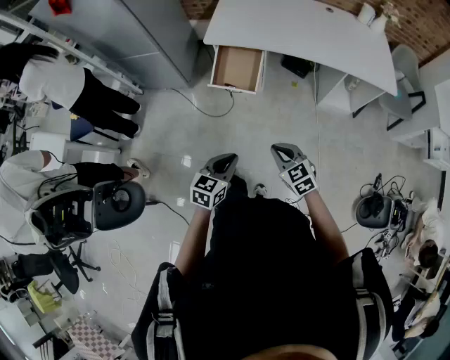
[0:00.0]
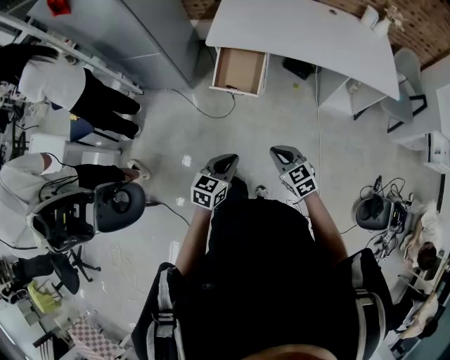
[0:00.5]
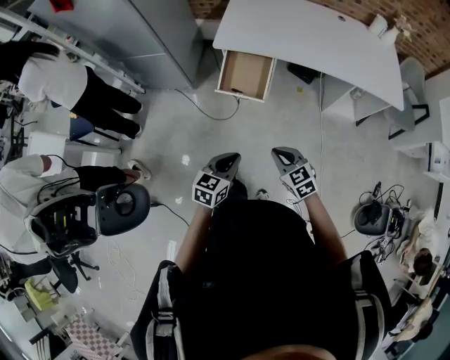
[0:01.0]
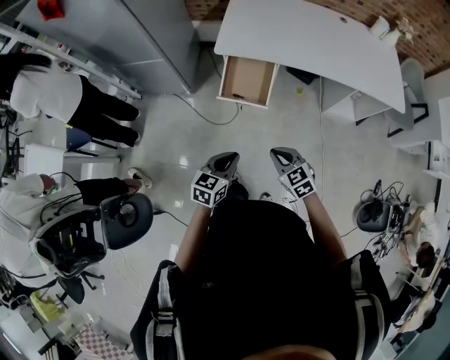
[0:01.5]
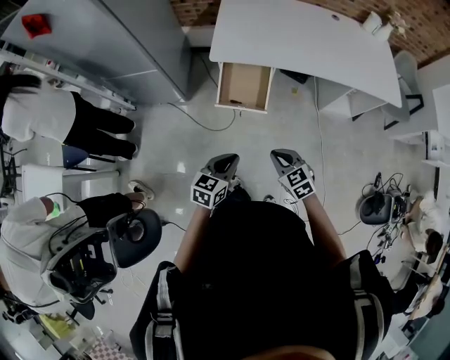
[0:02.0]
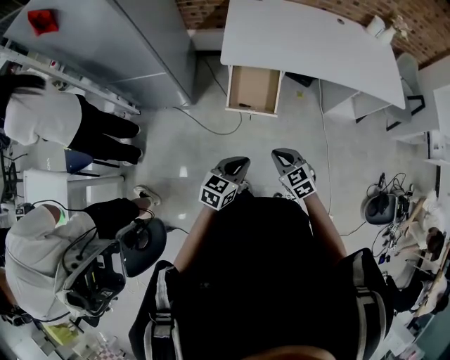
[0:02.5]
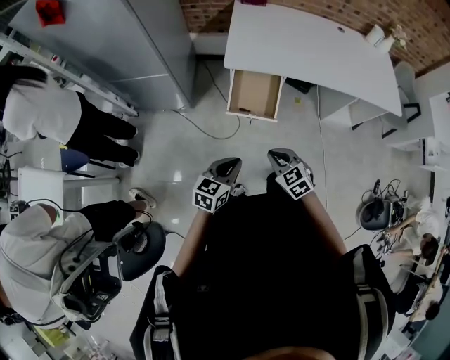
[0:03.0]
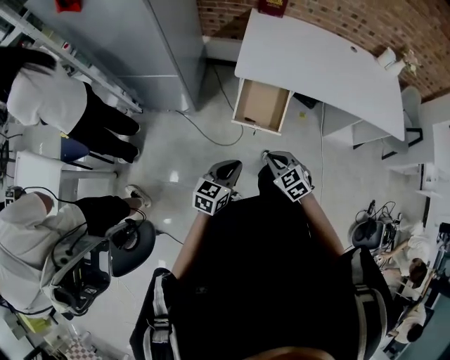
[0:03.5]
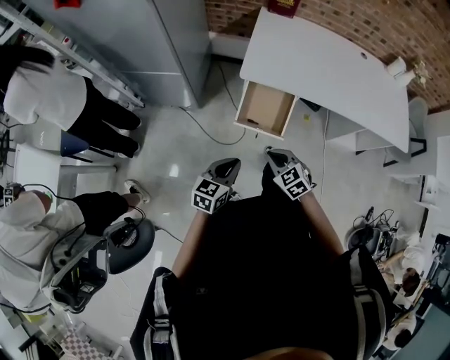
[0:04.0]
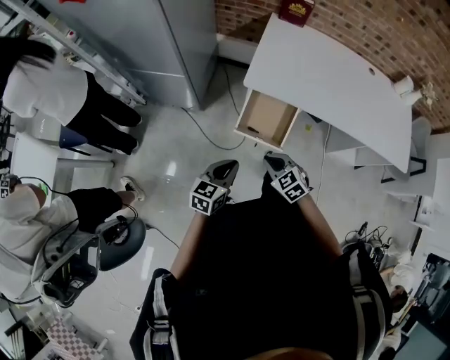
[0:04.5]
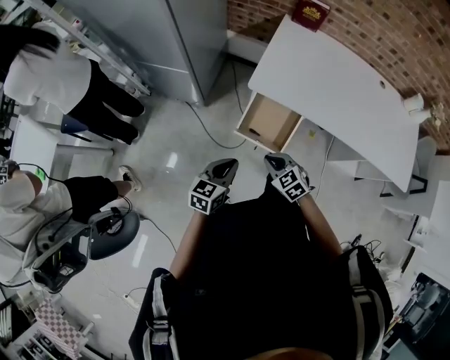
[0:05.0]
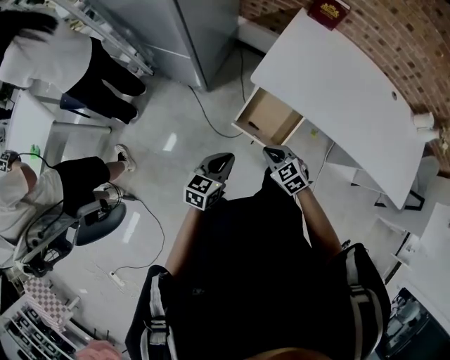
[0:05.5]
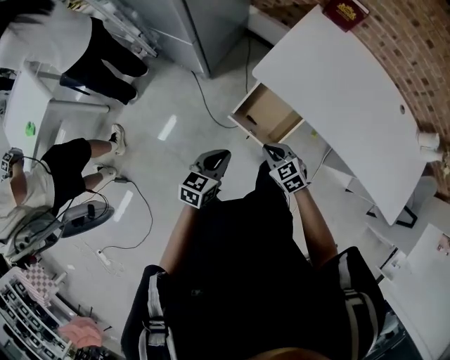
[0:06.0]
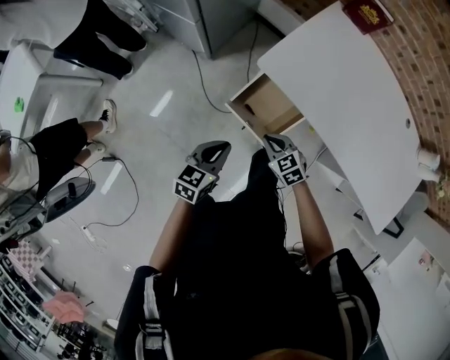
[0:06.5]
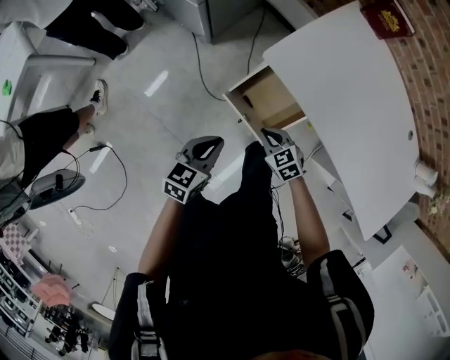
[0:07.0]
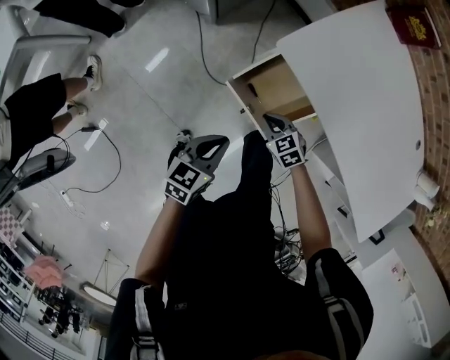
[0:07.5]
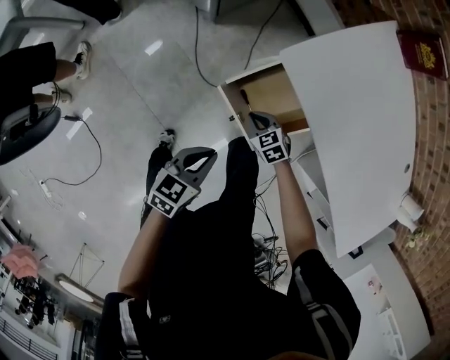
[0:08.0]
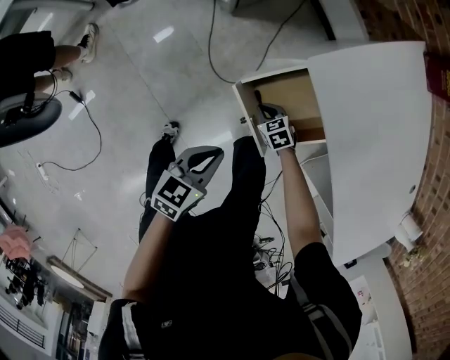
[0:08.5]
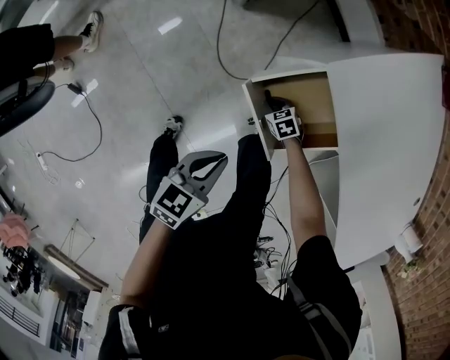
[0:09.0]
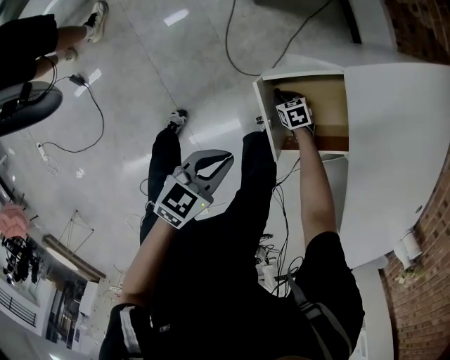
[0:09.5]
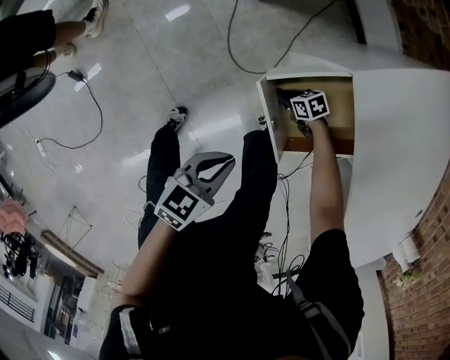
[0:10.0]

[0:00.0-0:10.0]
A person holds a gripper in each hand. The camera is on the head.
0:00.0 to 0:02.0: Both grippers travel together forward and to the left, some 15 cm.
0:02.0 to 0:04.0: The two grippers go about 15 cm to the left and forward.
0:04.0 to 0:06.0: The left gripper heads forward and to the right, covering some 10 cm, and rotates roughly 20 degrees. Meanwhile the right gripper heads forward, to the right and downward, covering roughly 15 cm, and turns by roughly 20 degrees.
0:06.0 to 0:08.0: The right gripper moves downward and forward, some 20 cm; the left gripper shifts approximately 10 cm downward.
0:08.0 to 0:10.0: The left gripper goes about 5 cm downward. The right gripper shifts approximately 20 cm downward, and changes its angle by about 30 degrees.

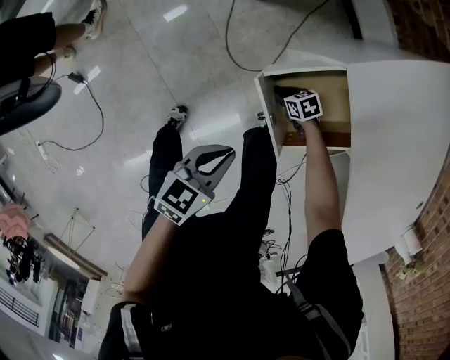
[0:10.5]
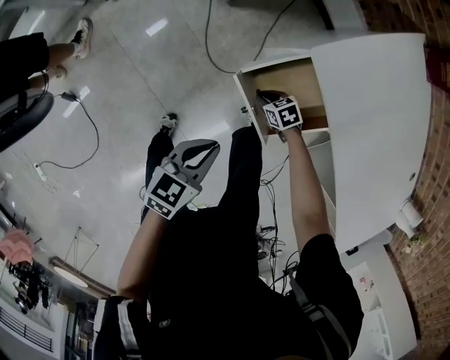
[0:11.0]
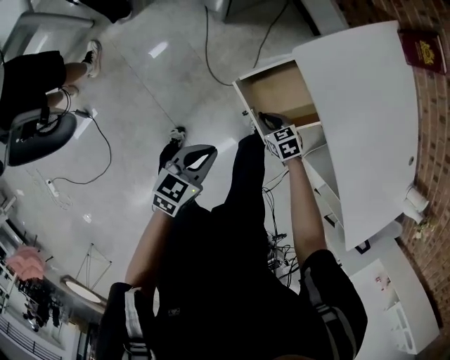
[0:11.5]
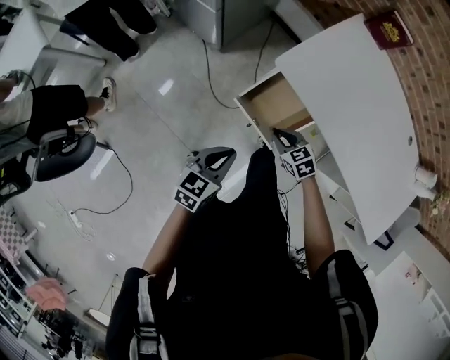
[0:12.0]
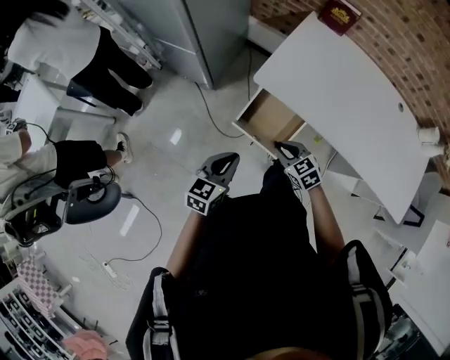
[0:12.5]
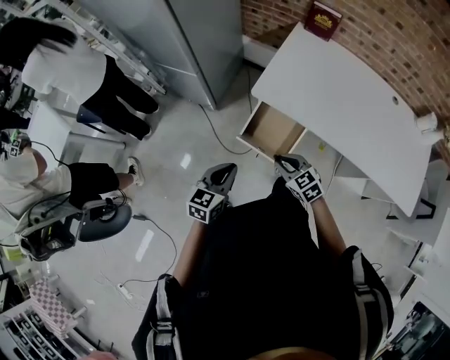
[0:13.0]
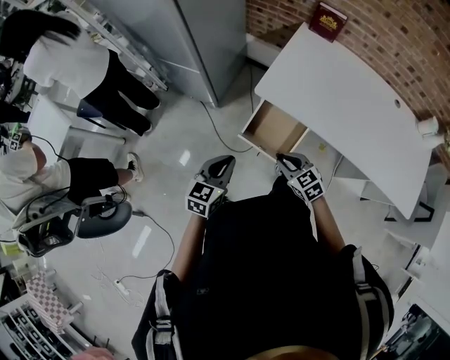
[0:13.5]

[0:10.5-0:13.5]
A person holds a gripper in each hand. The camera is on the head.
0:10.5 to 0:12.0: The left gripper is displaced upward by some 15 cm, while the right gripper travels upward by about 30 cm, and swivels roughly 30 degrees.
0:12.0 to 0:13.5: The left gripper moves upward, roughly 5 cm; the right gripper heads upward and backward, covering approximately 15 cm.

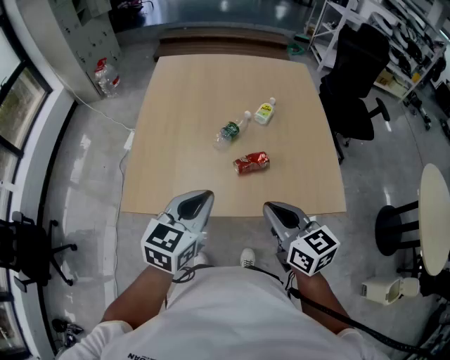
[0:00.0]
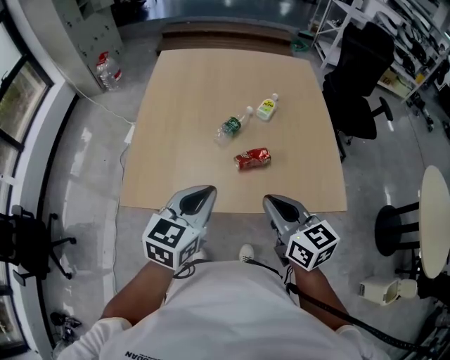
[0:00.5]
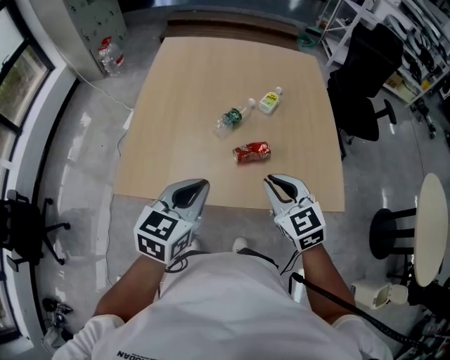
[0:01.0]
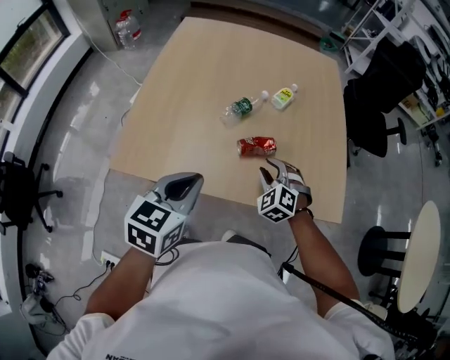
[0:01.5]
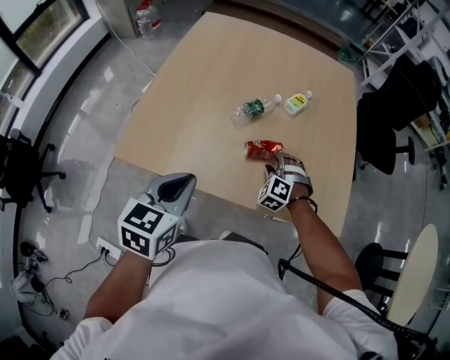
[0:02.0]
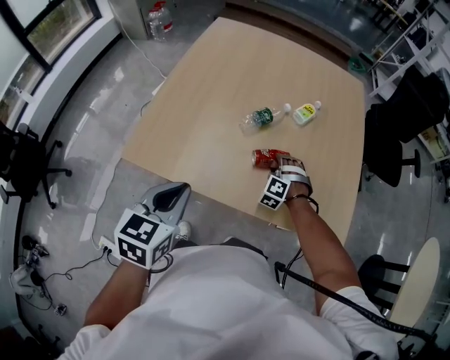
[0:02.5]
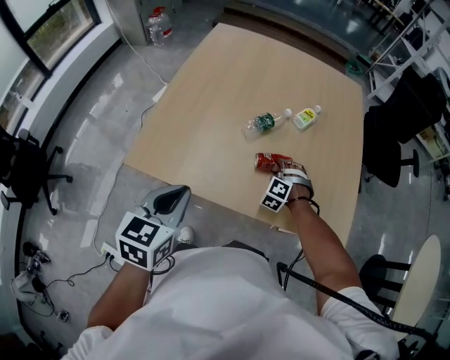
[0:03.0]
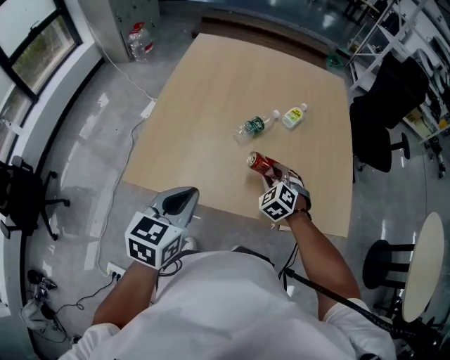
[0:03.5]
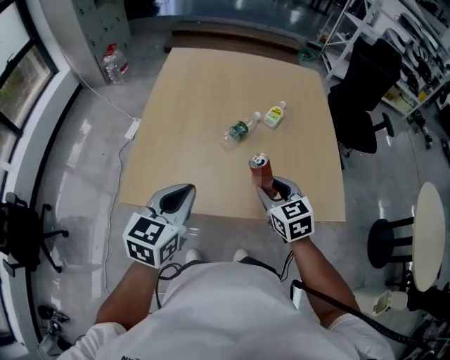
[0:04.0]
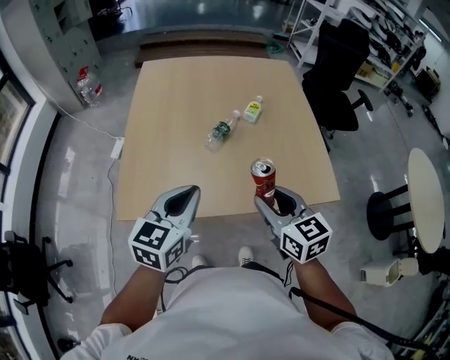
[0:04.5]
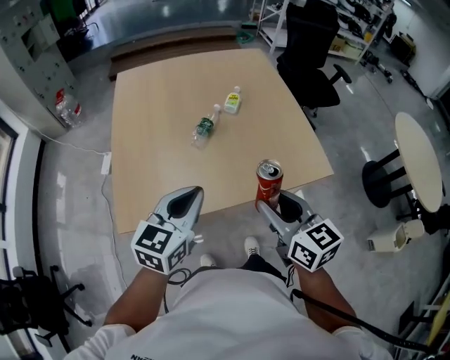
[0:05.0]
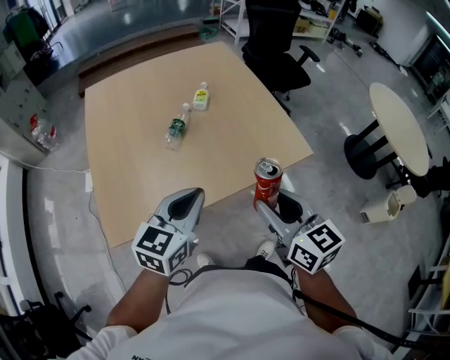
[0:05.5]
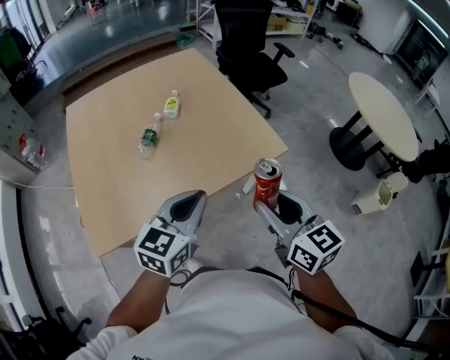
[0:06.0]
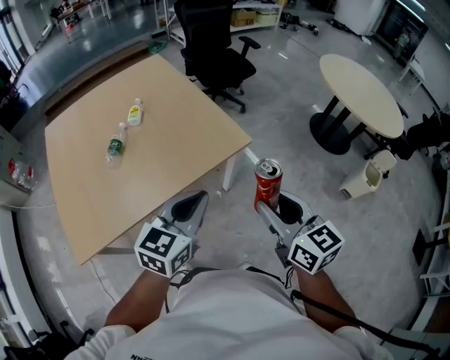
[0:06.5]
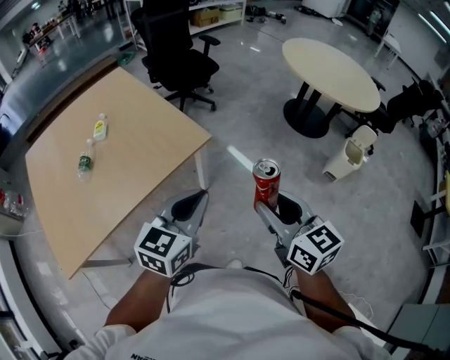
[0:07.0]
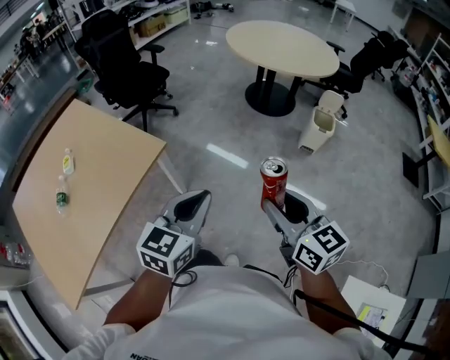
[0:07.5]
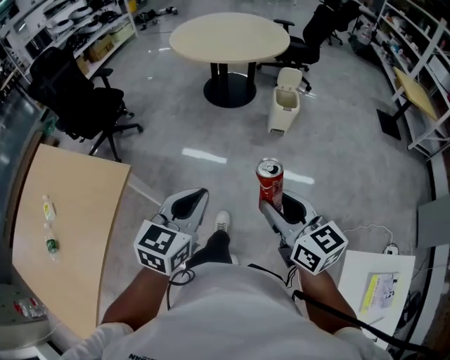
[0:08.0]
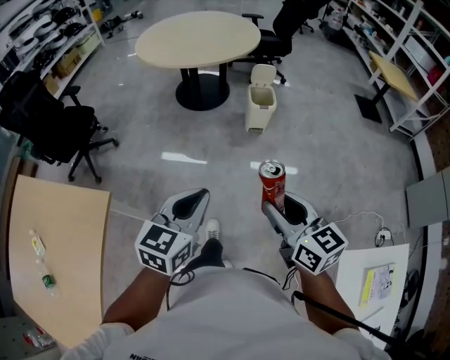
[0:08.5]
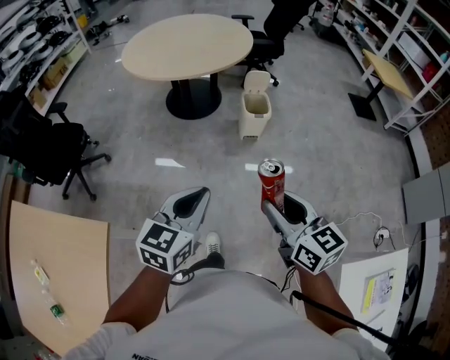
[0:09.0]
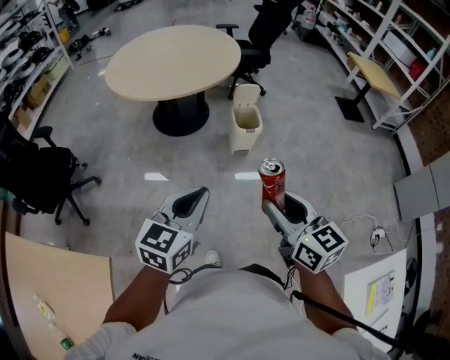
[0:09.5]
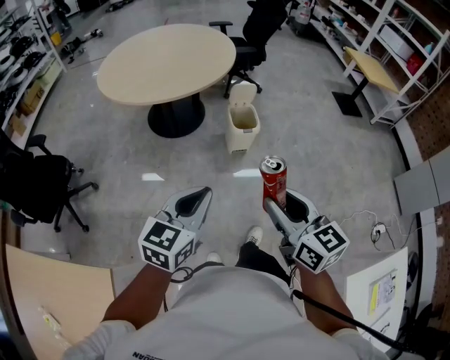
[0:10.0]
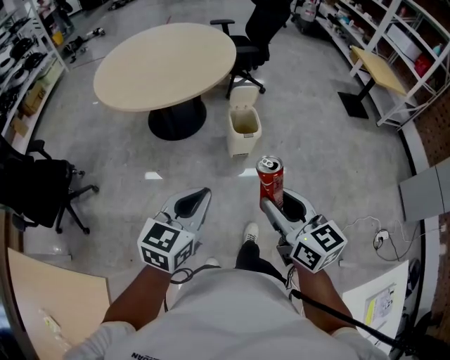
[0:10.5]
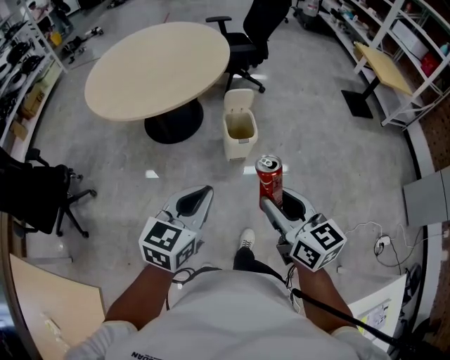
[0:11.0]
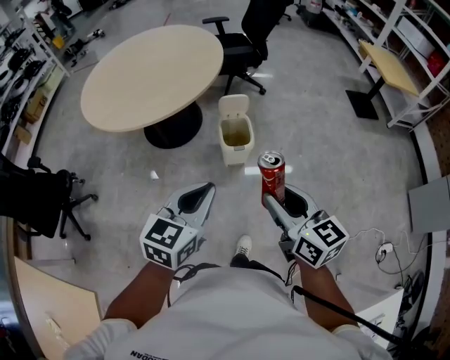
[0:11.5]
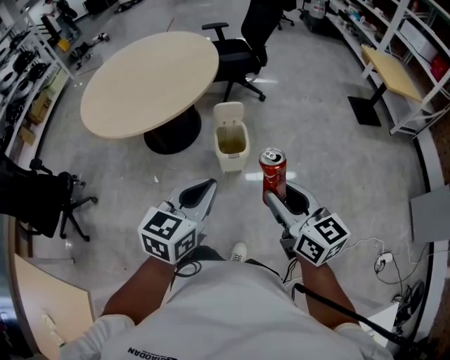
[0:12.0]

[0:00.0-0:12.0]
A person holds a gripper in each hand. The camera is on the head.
0:00.0 to 0:02.0: The right gripper heads downward and forward, covering approximately 30 cm, rotates around the line of its fingers by roughly 80 degrees, counterclockwise from behind, and opens.
0:02.0 to 0:04.0: The right gripper moves upward and backward, approximately 20 cm, and twists about 60 degrees clockwise, seen from behind. Meanwhile the left gripper shifts by roughly 5 cm.
0:04.0 to 0:06.0: The left gripper changes place by about 20 cm, and changes its angle by roughly 40 degrees, while the right gripper changes place by about 25 cm, and swivels about 40 degrees.
0:06.0 to 0:08.0: The two grippers travel together, approximately 40 cm. The right gripper swivels some 50 degrees; the left gripper swivels about 50 degrees.
0:08.0 to 0:10.0: The grippers both shift forward by roughly 25 cm. The left gripper turns by roughly 20 degrees, while the right gripper rotates approximately 20 degrees.
0:10.0 to 0:12.0: Both grippers travel together forward and to the right, about 25 cm.

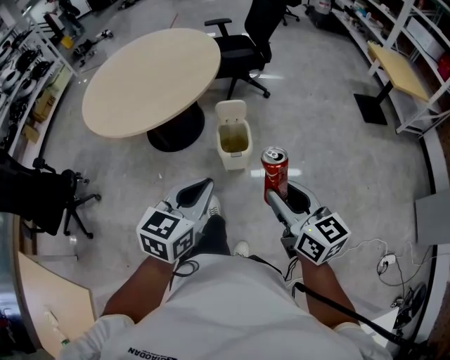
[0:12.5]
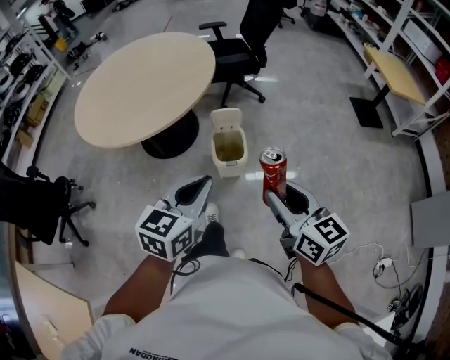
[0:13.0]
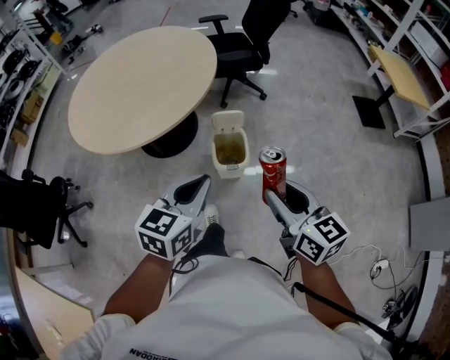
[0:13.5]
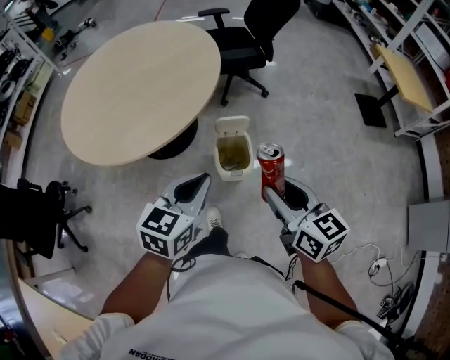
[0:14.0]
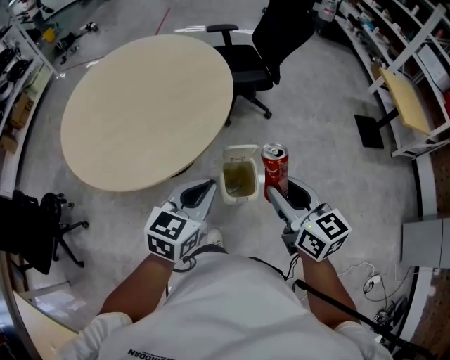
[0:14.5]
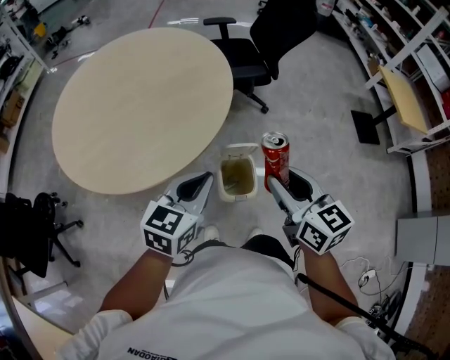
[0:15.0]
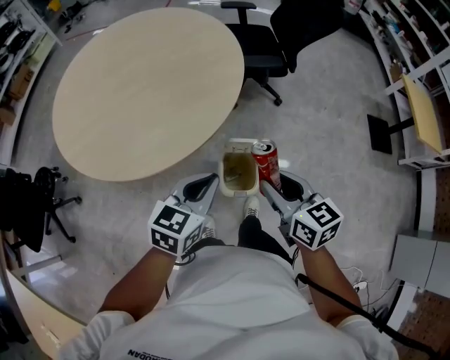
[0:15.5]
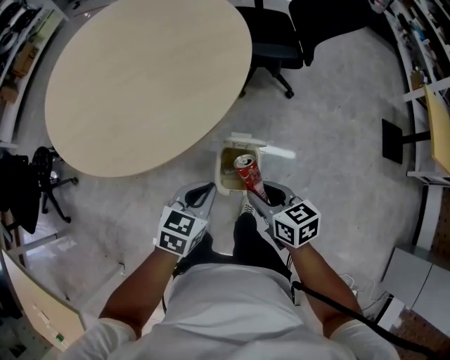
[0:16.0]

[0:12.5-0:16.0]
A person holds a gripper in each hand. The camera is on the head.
0:12.5 to 0:14.5: The grippers both shift forward by about 25 cm.
0:14.5 to 0:16.0: Both grippers travel together downward, approximately 15 cm. The right gripper changes its angle by roughly 30 degrees.
